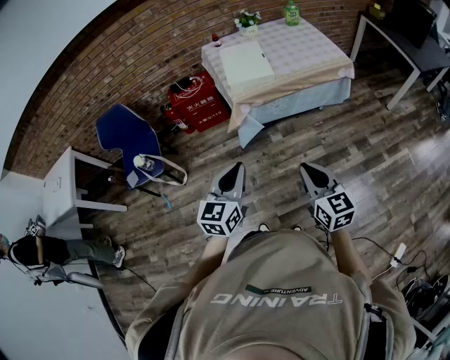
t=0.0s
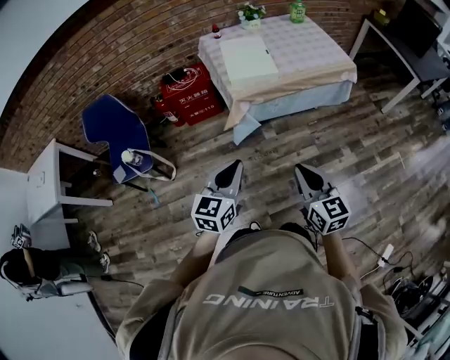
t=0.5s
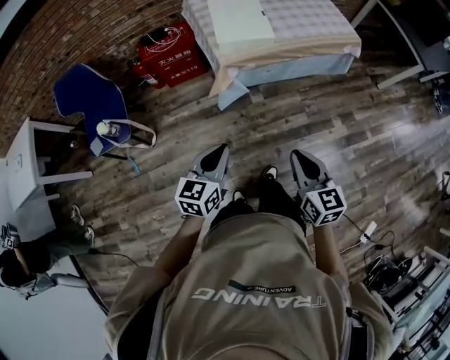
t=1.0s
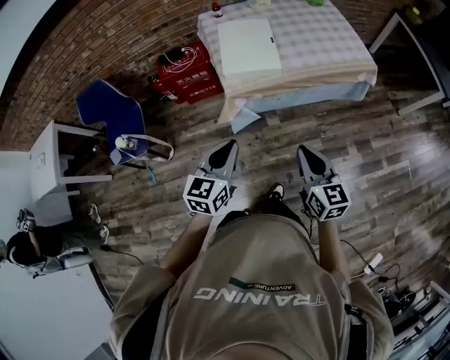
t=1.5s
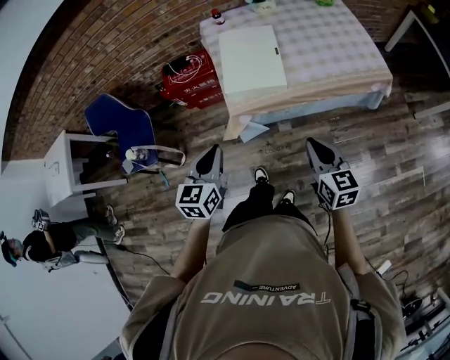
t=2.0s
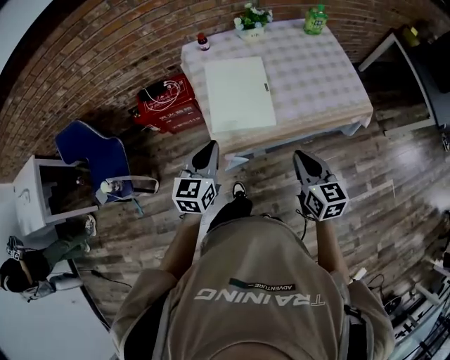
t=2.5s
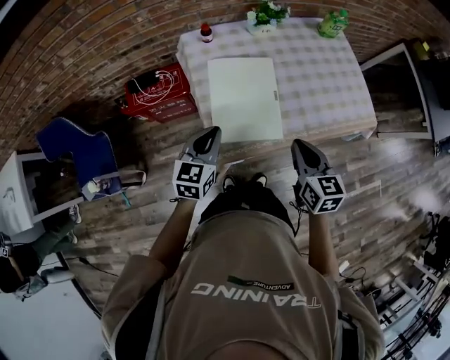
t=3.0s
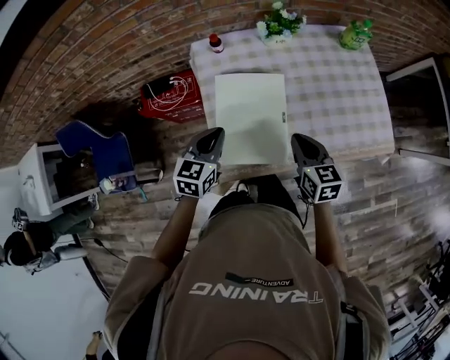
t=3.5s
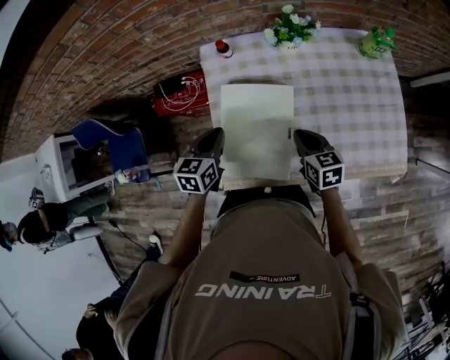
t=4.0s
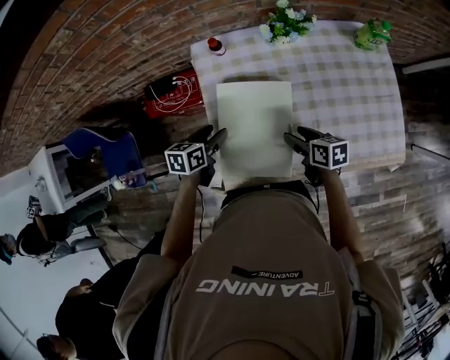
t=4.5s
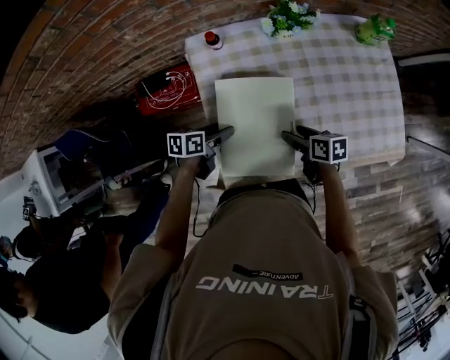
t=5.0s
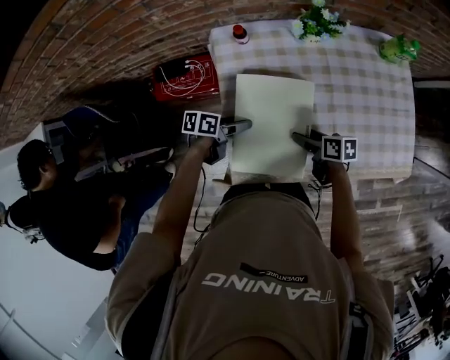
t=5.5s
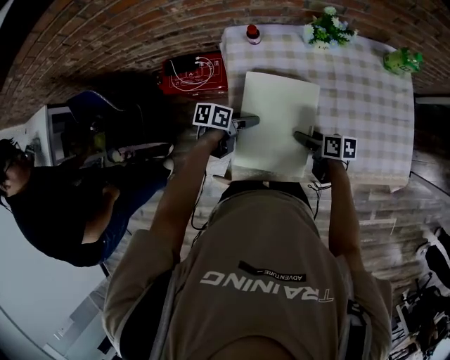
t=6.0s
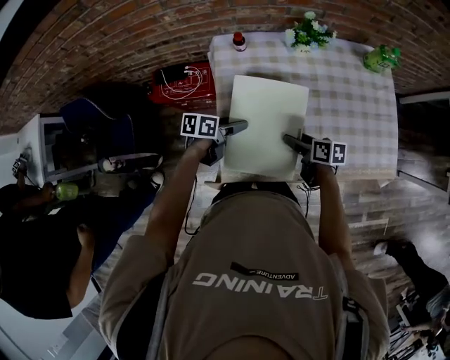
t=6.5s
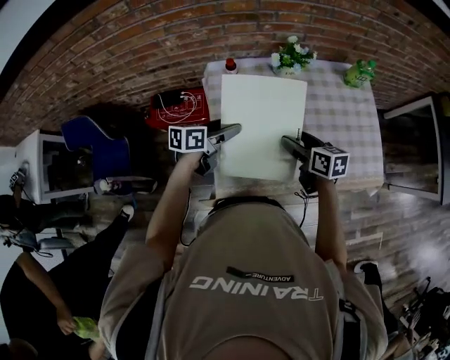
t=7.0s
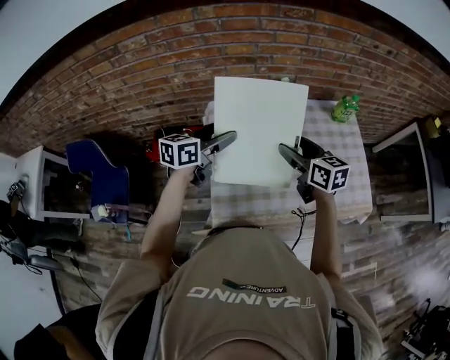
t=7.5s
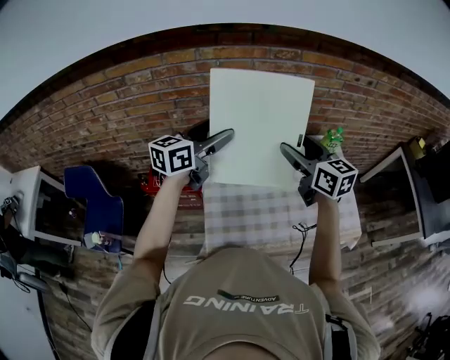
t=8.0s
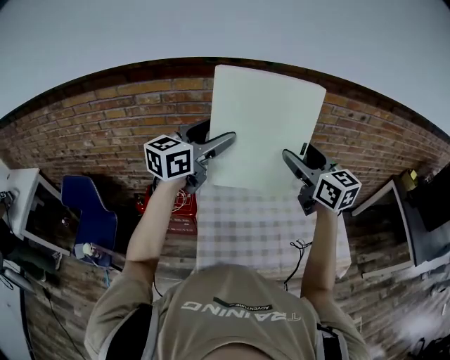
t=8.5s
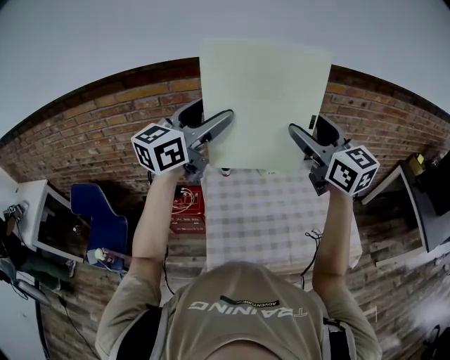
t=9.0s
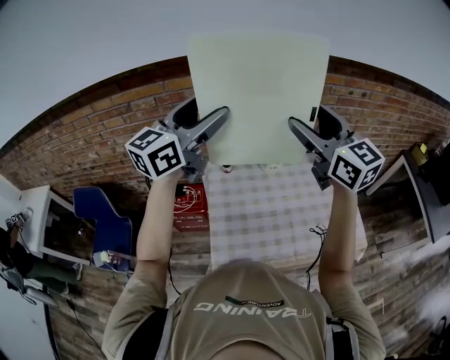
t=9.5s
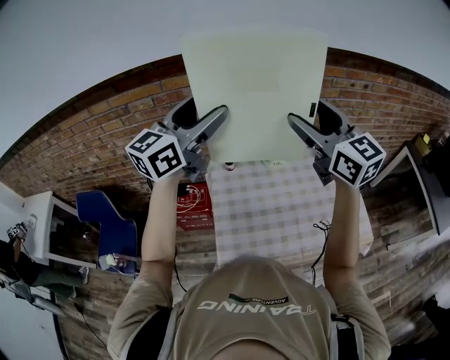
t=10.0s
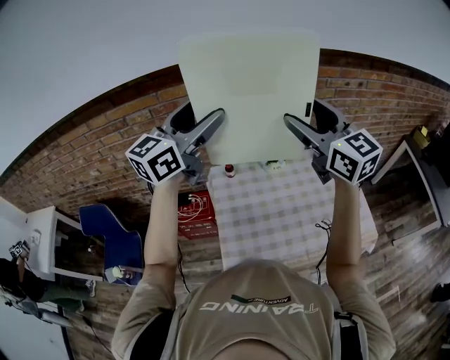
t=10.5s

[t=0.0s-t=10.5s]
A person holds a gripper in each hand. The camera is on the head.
t=0.0s to t=2.0s: The grippers both shift forward by approximately 30 cm.
t=2.0s to t=4.0s: The two grippers go some 40 cm forward. The right gripper turns by approximately 20 degrees.
t=4.0s to t=6.5s: The left gripper moves downward, some 10 cm, turns by about 40 degrees, and opens. The right gripper goes some 5 cm downward, swivels approximately 30 degrees, and opens up.
t=6.5s to t=8.5s: The two grippers go some 50 cm upward. The right gripper angles its fingers upward, by roughly 40 degrees, while the left gripper angles its fingers upward, by about 40 degrees.
t=8.5s to t=10.5s: Both grippers travel together upward, approximately 10 cm.

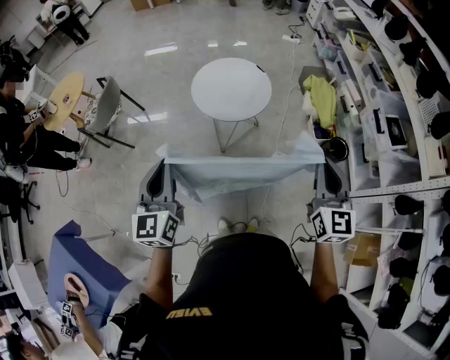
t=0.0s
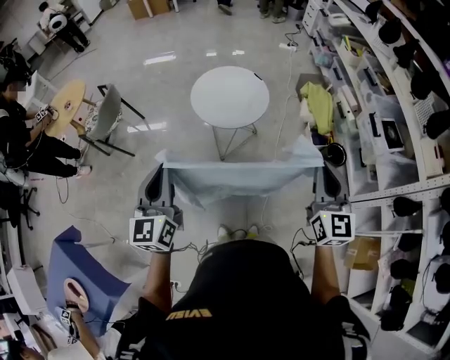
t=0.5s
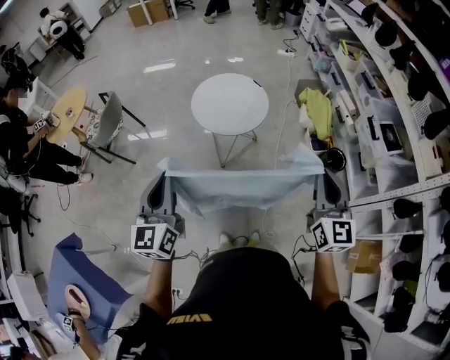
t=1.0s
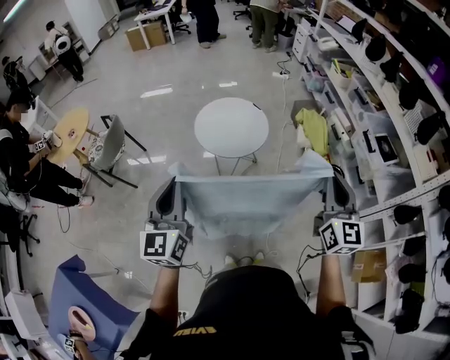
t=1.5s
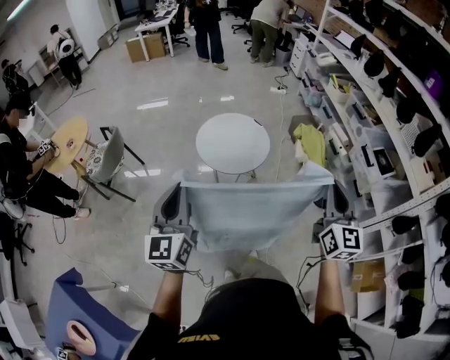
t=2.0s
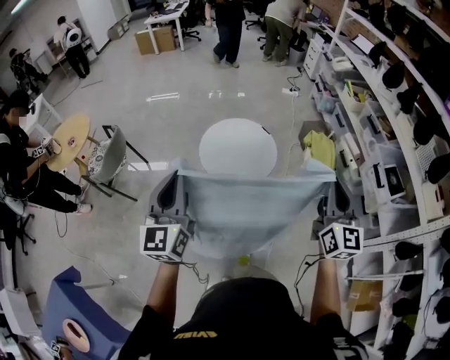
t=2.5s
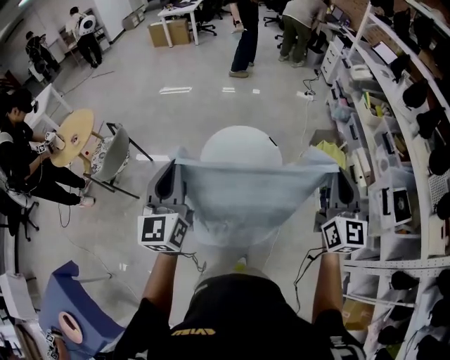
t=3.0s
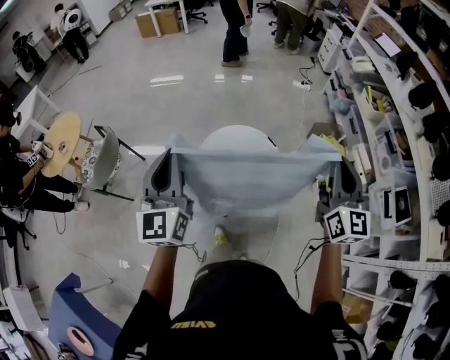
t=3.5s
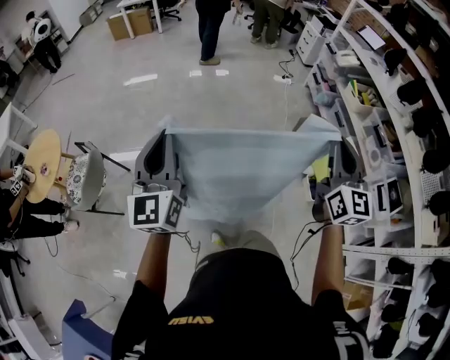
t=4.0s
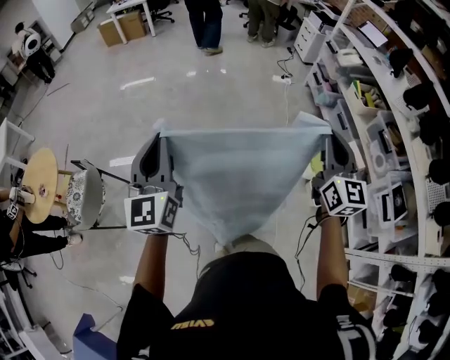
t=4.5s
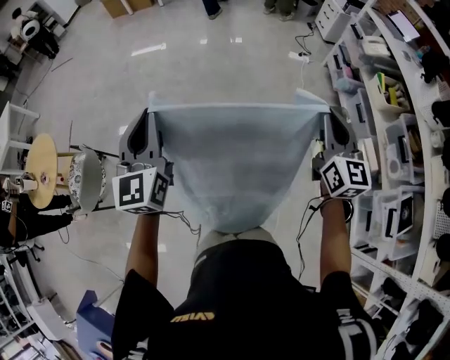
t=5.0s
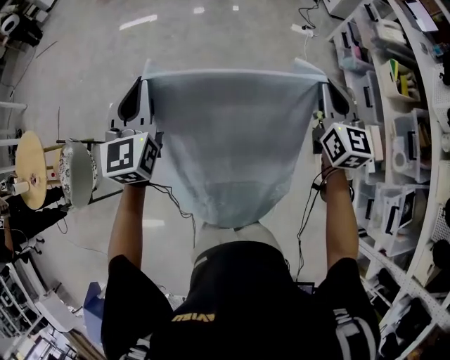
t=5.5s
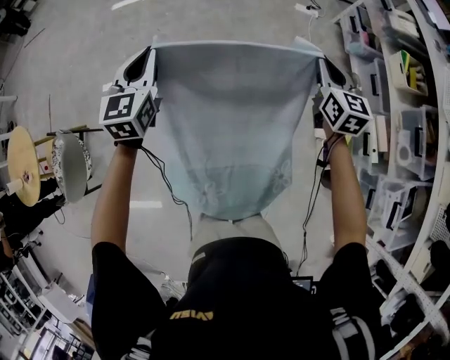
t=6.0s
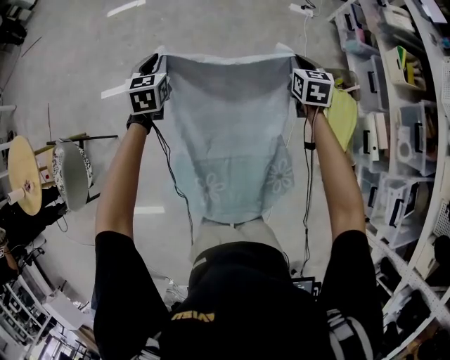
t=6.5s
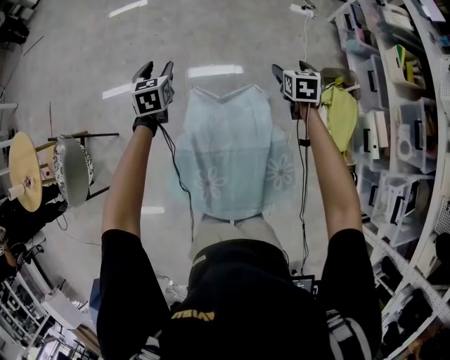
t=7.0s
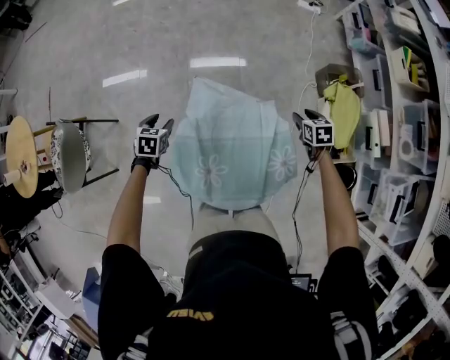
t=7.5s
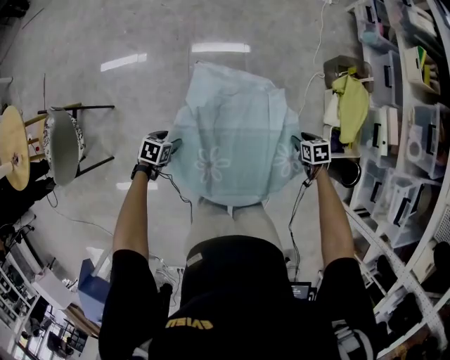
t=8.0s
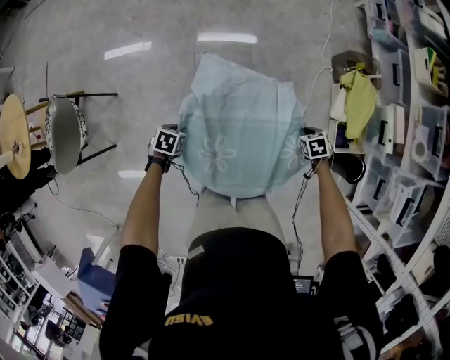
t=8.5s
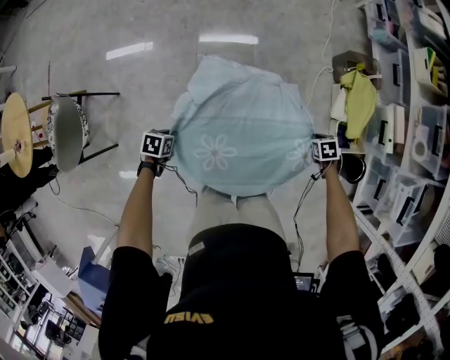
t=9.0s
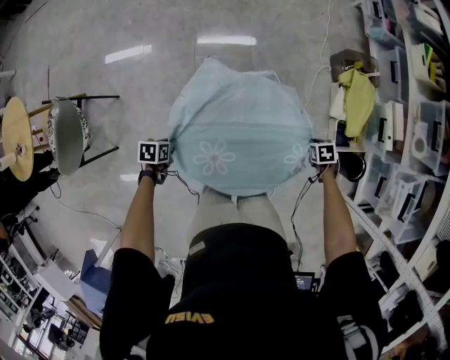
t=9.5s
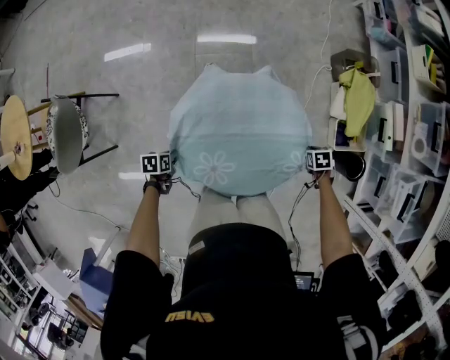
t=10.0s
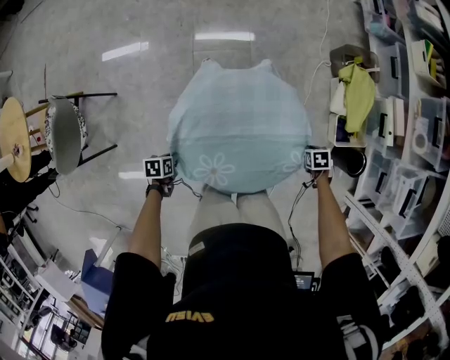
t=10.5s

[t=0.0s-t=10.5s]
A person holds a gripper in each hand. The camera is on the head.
t=0.0s to t=2.0s: Both grippers move upward and to the left, approximately 10 cm.
t=2.0s to t=4.0s: The pair of grippers is taken forward, some 50 cm.
t=4.0s to t=6.5s: The pair of grippers is taken forward, approximately 60 cm. Both grippers travel together downward, about 35 cm. The left gripper points its fingers some 40 degrees further downward; the right gripper tips its fingers downward by approximately 40 degrees.
t=6.5s to t=8.5s: The left gripper changes place by about 50 cm, tips its fingers downward by some 40 degrees, and opens, then closes once more. The right gripper moves about 50 cm, angles its fingers downward, by roughly 40 degrees, and opens and closes again.
t=8.5s to t=10.5s: The left gripper ends up about 15 cm from where it was, and changes its angle by approximately 20 degrees, while the right gripper changes place by some 10 cm.

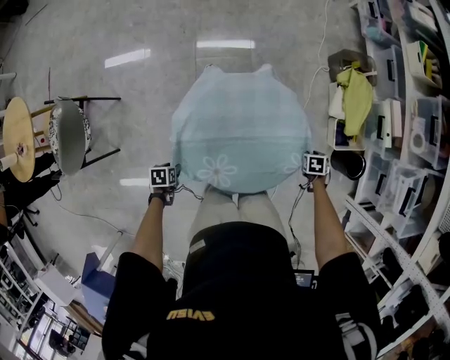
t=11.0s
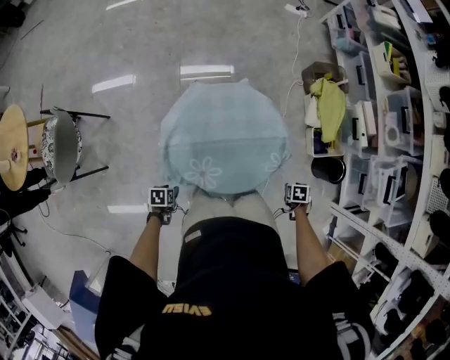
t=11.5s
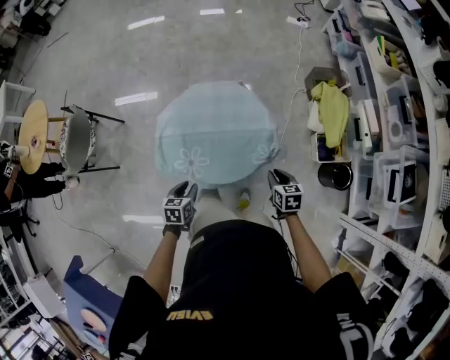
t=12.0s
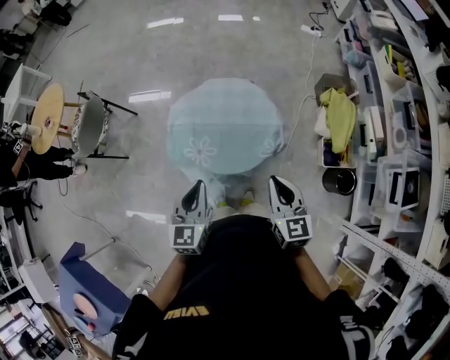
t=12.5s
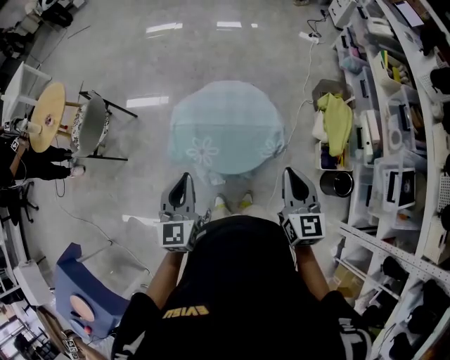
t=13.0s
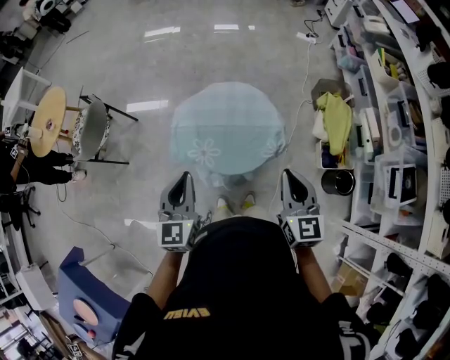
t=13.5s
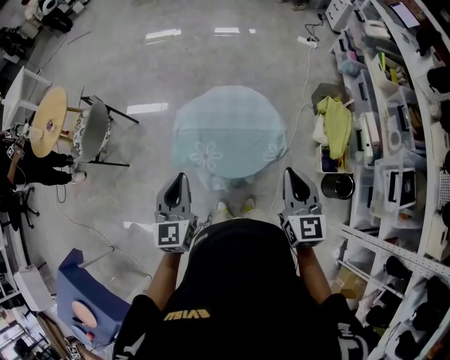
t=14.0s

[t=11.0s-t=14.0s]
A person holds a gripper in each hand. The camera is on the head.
t=11.0s to t=12.5s: Both grippers move upward, approximately 40 cm. The left gripper points its fingers roughly 60 degrees further upward, and closes its fingers. The right gripper tips its fingers upward by roughly 60 degrees.
t=12.5s to t=14.0s: The right gripper moves upward, approximately 10 cm. The left gripper shifts some 10 cm to the left and upward.

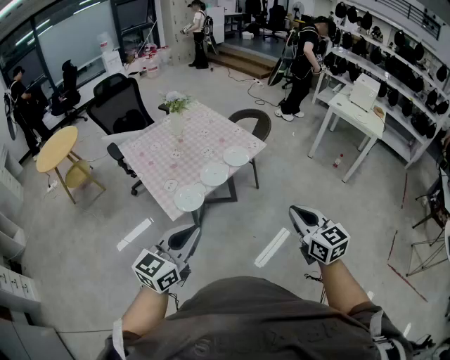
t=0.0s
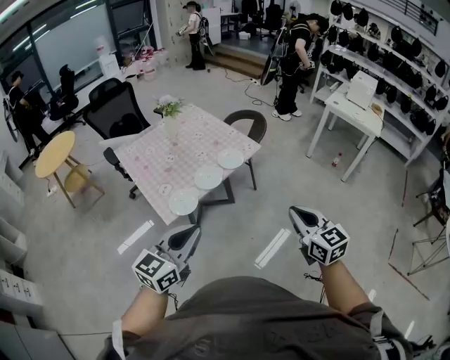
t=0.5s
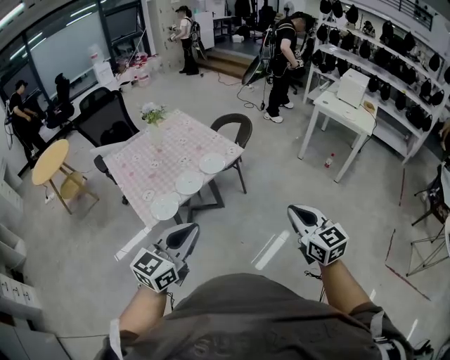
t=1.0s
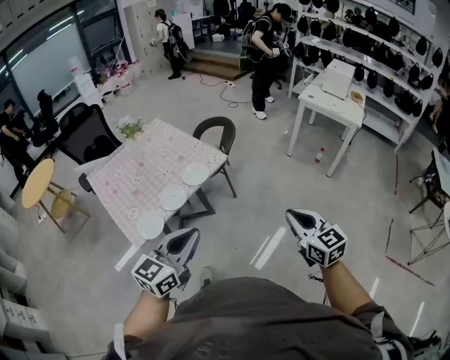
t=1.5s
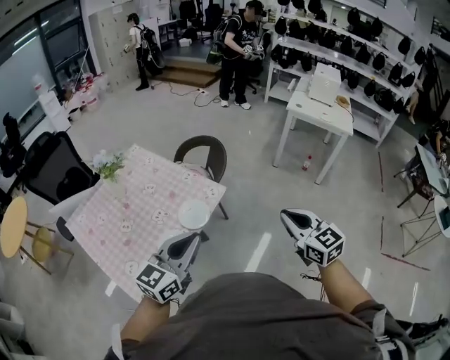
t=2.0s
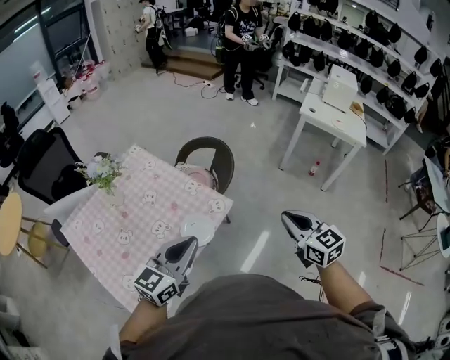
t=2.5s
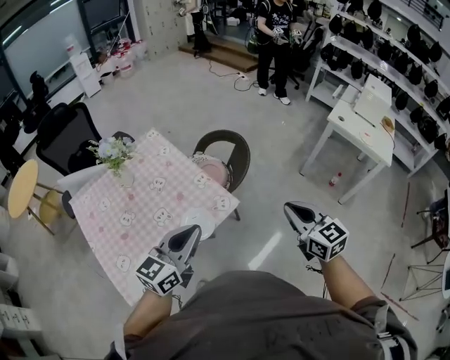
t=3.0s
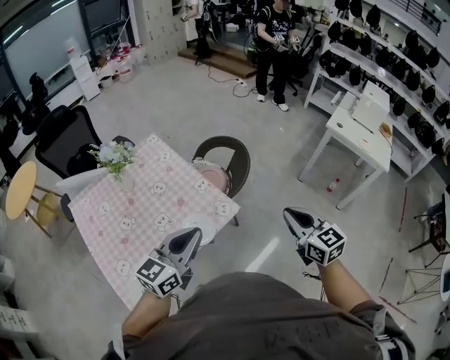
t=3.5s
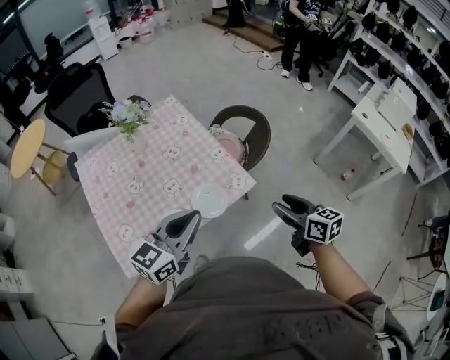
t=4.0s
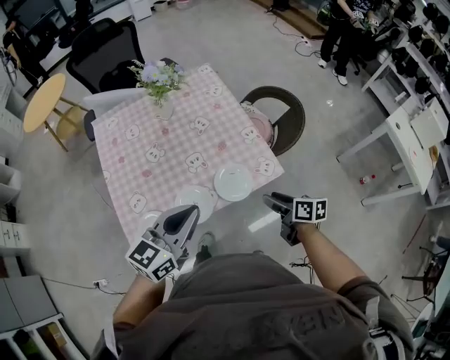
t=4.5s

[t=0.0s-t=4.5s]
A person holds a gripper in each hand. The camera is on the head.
t=0.0s to t=2.0s: The grippers both shift forward by roughly 30 cm.
t=2.0s to t=4.5s: The right gripper moves approximately 35 cm, rotates some 60 degrees, and opens. The left gripper ends up roughly 15 cm from where it was, and changes its angle by approximately 30 degrees.
